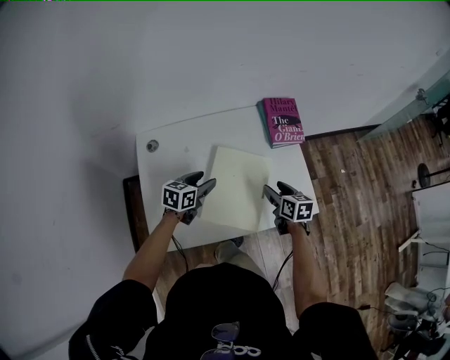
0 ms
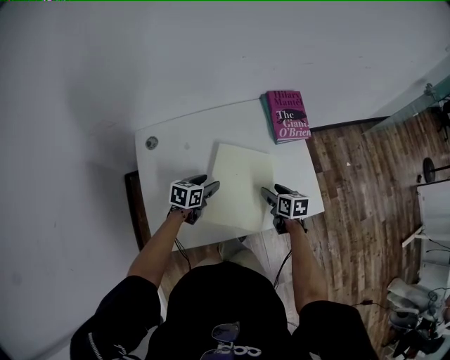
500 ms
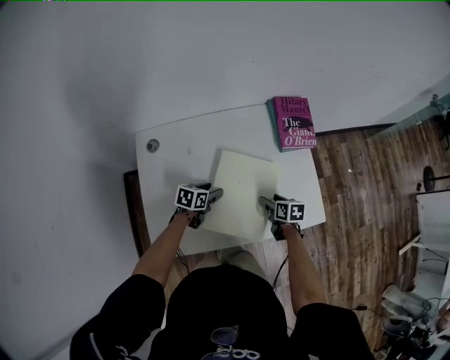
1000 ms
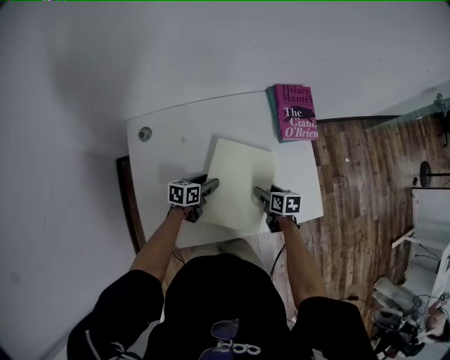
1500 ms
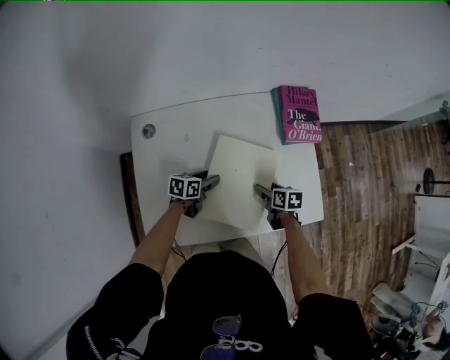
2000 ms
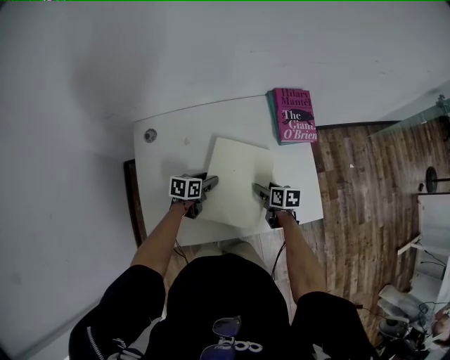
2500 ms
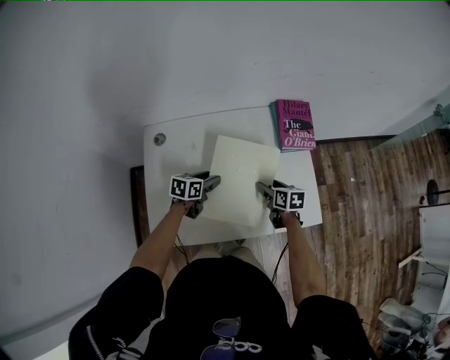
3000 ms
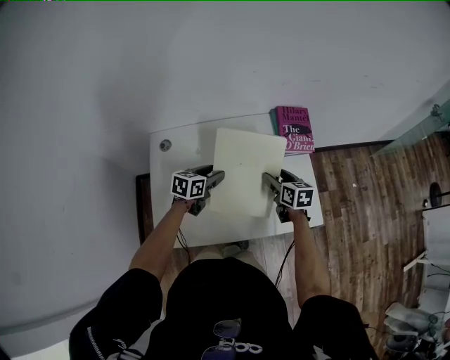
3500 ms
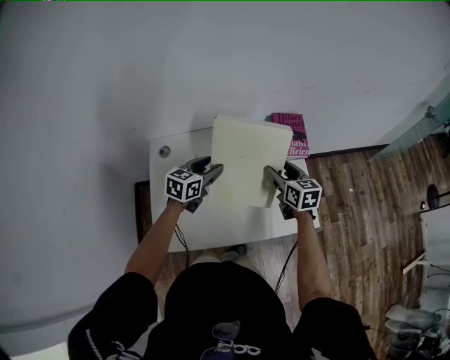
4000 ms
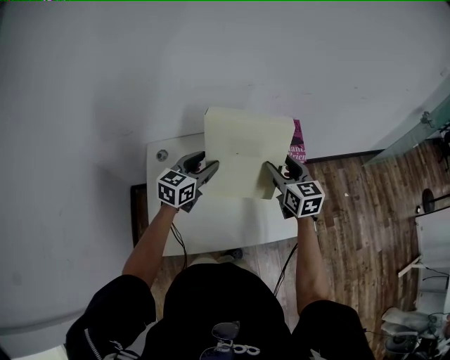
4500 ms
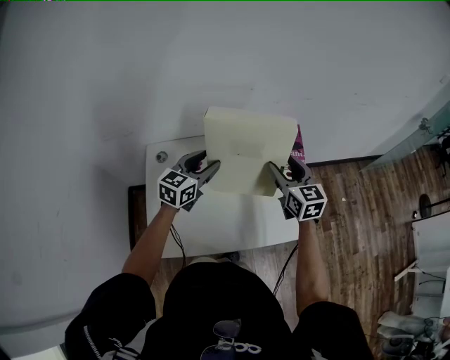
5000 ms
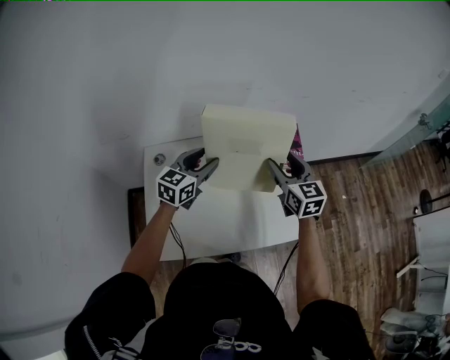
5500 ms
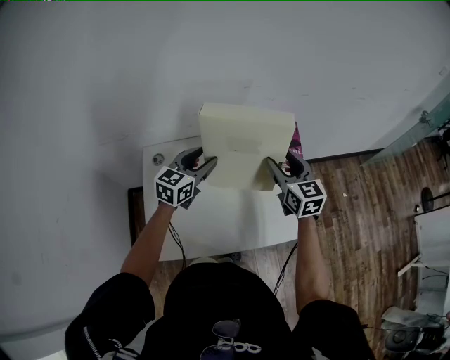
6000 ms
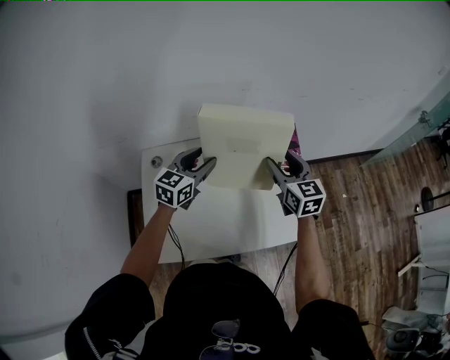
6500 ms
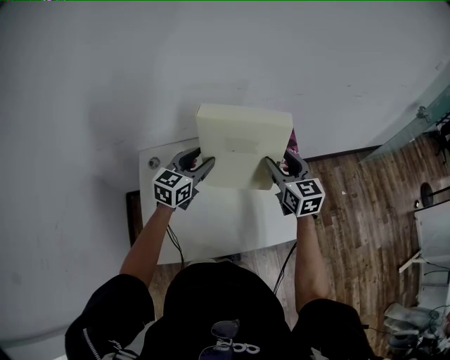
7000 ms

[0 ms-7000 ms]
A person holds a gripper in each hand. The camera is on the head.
0 ms to 2000 ms: Both grippers move downward, some 15 cm. The right gripper turns by about 20 degrees. Meanwhile the left gripper swivels approximately 20 degrees.
2000 ms to 3500 ms: The grippers both shift upward by approximately 15 cm. The right gripper turns by some 30 degrees.
3500 ms to 5000 ms: The two grippers go about 20 cm upward. The right gripper rotates approximately 30 degrees. The left gripper changes its angle by about 30 degrees.
5000 ms to 7000 ms: There are only small adjustments of the grippers.

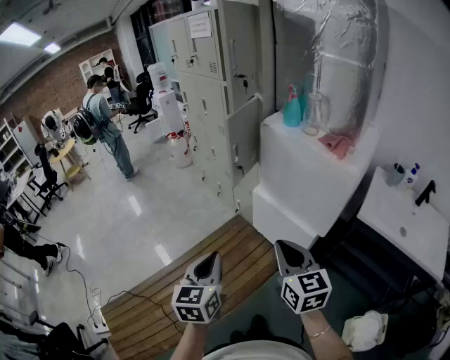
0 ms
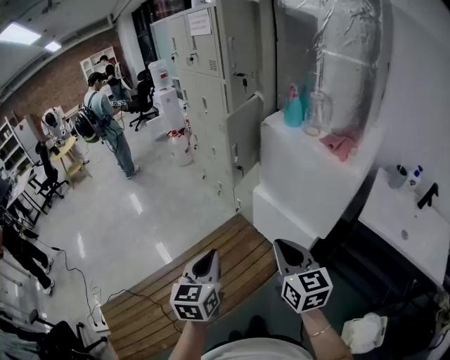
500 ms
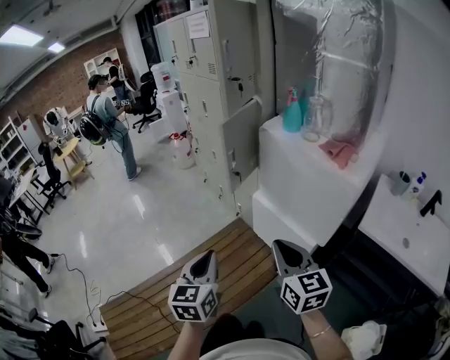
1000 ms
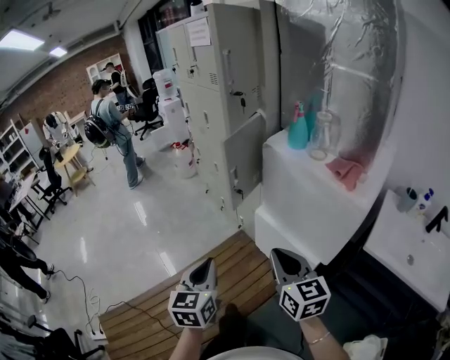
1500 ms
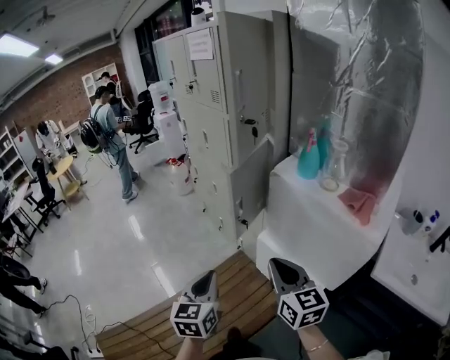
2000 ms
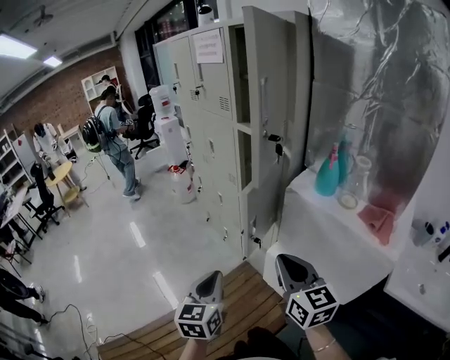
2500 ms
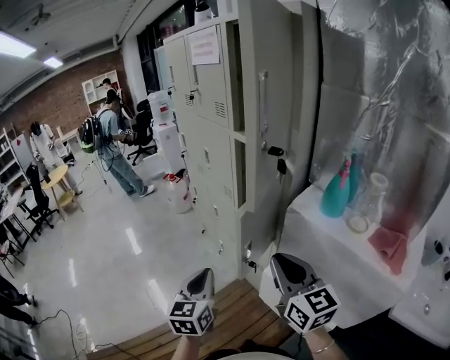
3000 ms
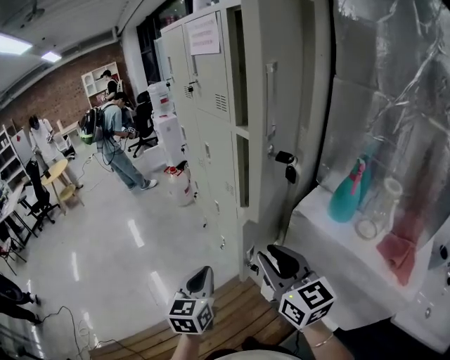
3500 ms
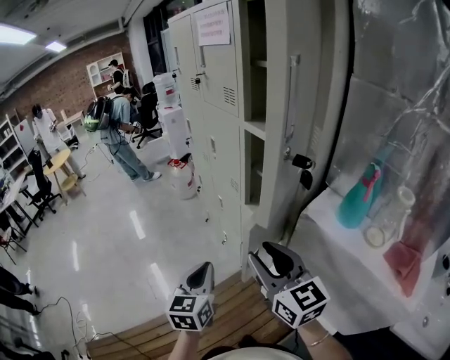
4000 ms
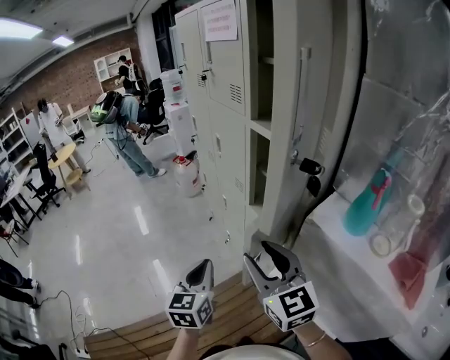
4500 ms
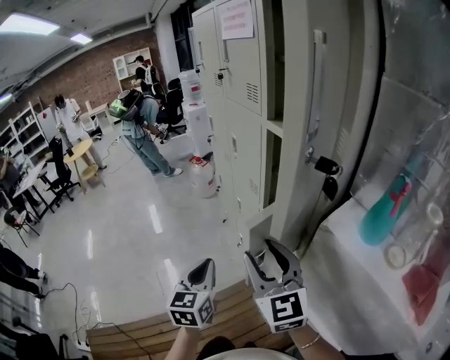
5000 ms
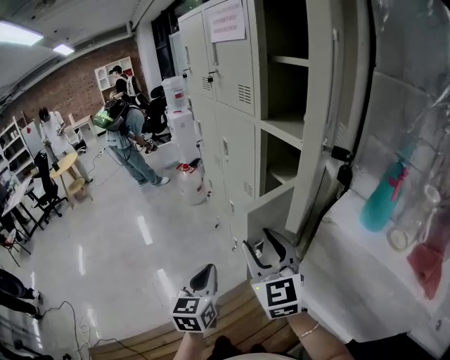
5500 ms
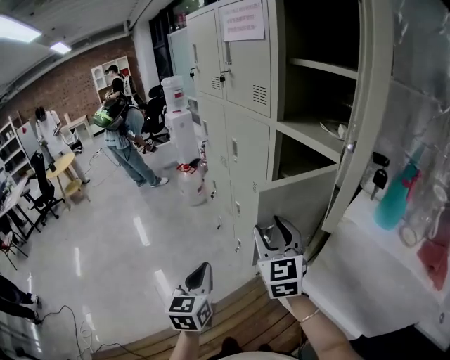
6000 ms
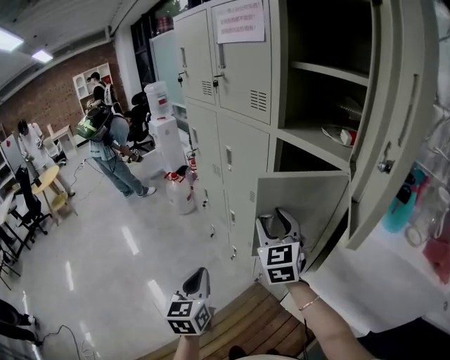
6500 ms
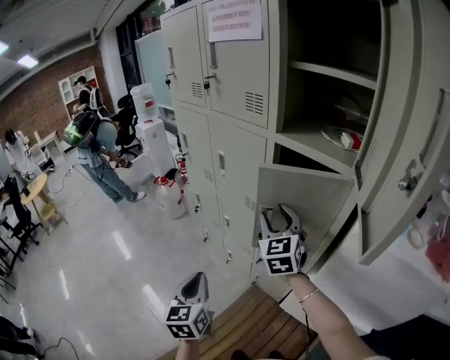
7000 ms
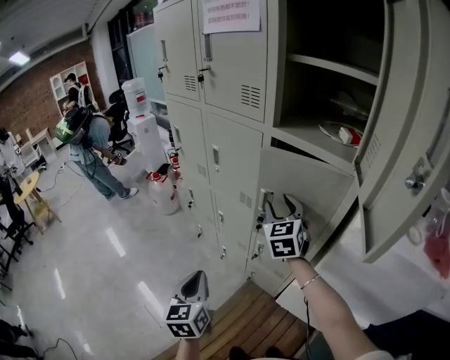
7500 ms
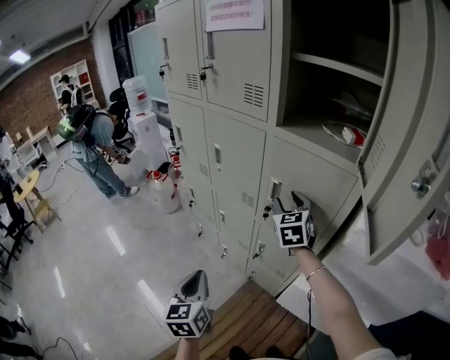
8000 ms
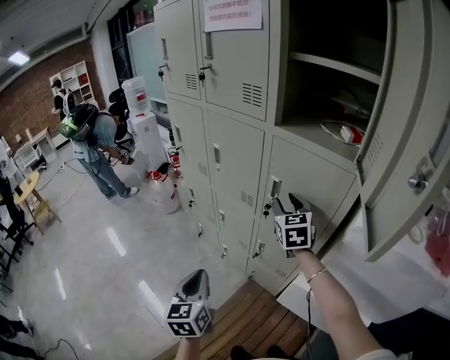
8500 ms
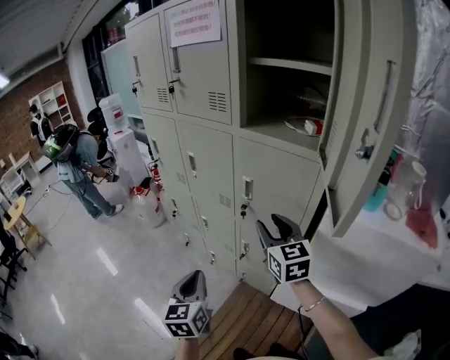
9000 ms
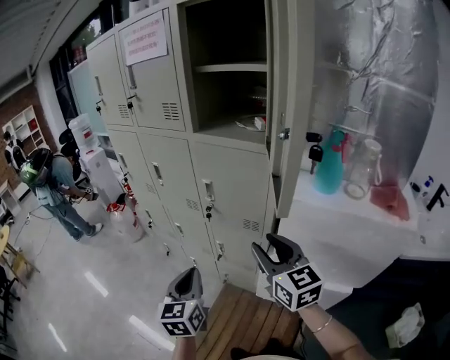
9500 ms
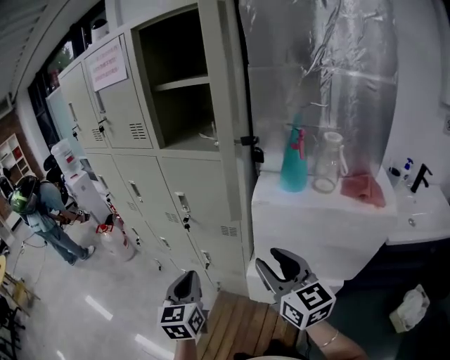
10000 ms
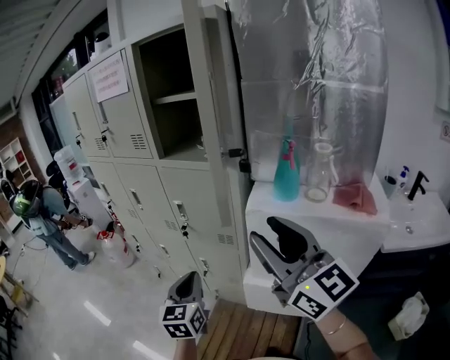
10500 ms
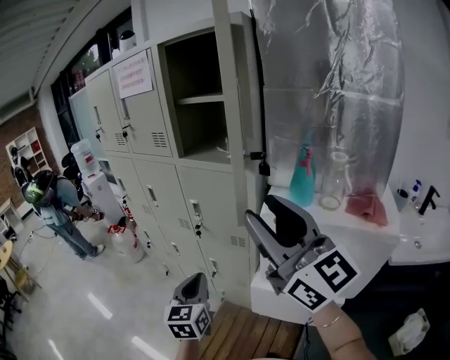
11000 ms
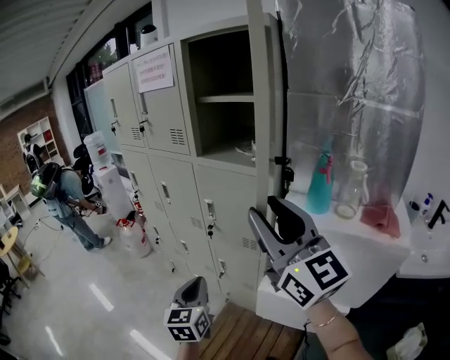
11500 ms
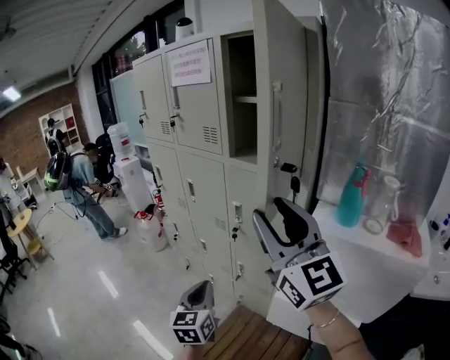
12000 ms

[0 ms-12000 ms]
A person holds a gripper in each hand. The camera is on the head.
0 ms to 2000 ms: Both grippers travel together forward, some 25 cm.
2000 ms to 4000 ms: The two grippers go approximately 30 cm forward. The right gripper opens its fingers.
4000 ms to 6000 ms: The right gripper shifts some 15 cm forward and to the left, and changes its angle by approximately 30 degrees; the left gripper shifts approximately 15 cm to the left and forward.
6000 ms to 8000 ms: The left gripper moves forward and to the left, roughly 15 cm. The right gripper shifts some 20 cm forward, and turns by some 30 degrees.
8000 ms to 10000 ms: The right gripper is displaced backward and to the right by some 40 cm, and rotates about 30 degrees, while the left gripper shifts some 20 cm to the right, and changes its angle by about 20 degrees.
10000 ms to 12000 ms: The left gripper shifts roughly 10 cm to the left; the right gripper goes some 25 cm upward and to the left, and turns by approximately 30 degrees.

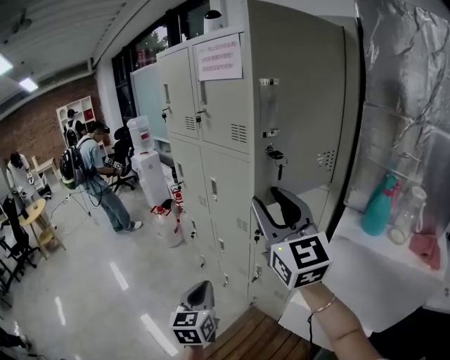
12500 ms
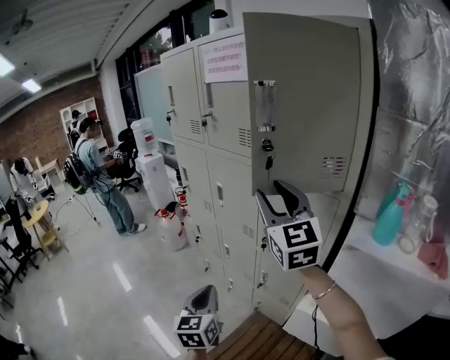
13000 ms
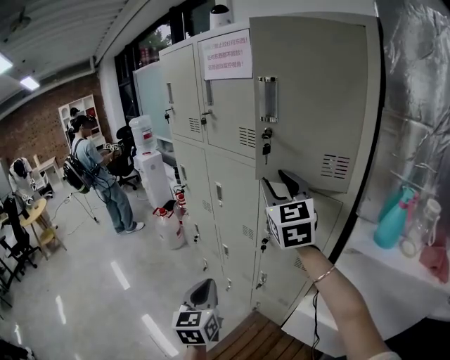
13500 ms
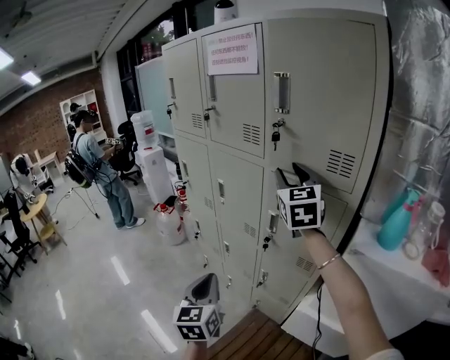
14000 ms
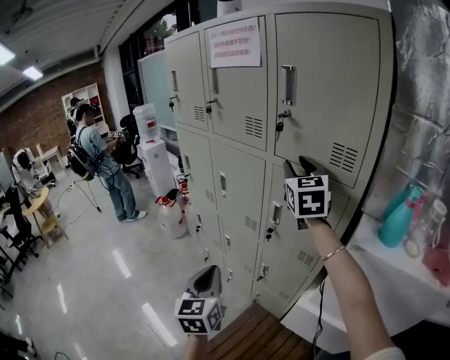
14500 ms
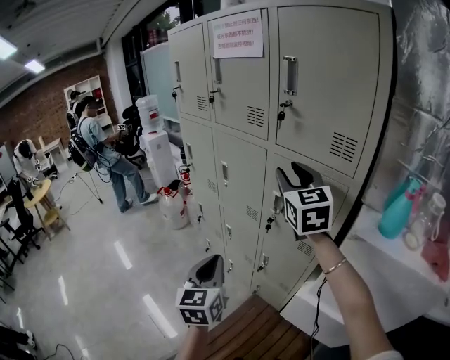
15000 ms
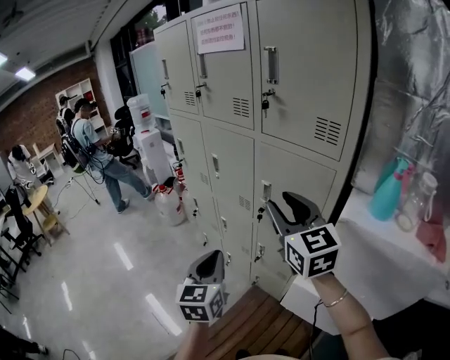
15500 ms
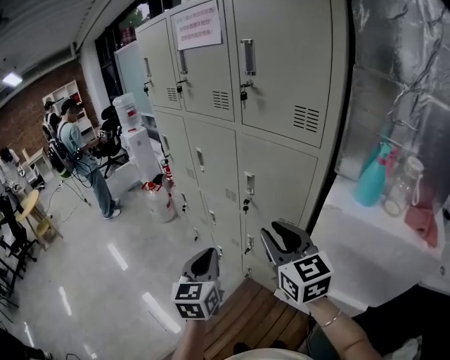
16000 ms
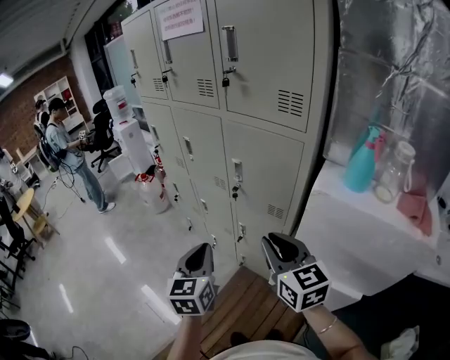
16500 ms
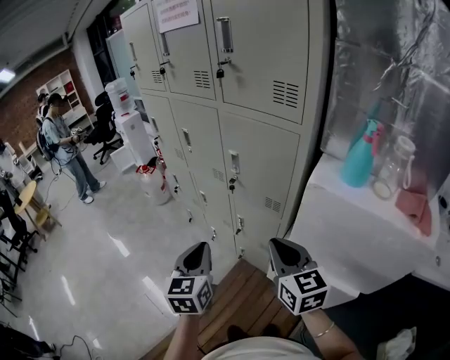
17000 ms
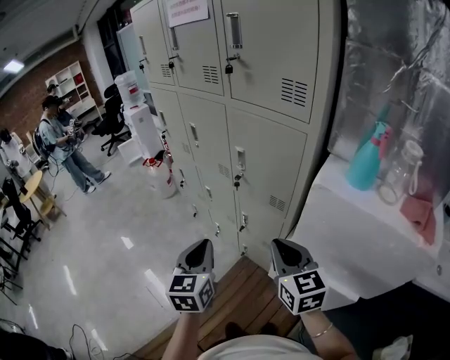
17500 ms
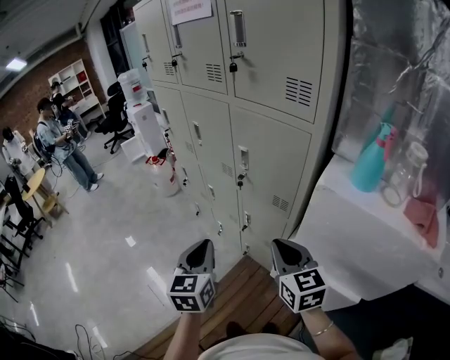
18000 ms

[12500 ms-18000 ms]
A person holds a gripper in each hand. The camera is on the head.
12500 ms to 14500 ms: The right gripper goes about 20 cm forward, and swivels about 30 degrees; the left gripper travels forward by roughly 5 cm.
14500 ms to 16000 ms: The left gripper moves to the right and backward, approximately 10 cm, while the right gripper moves backward and downward, some 30 cm, and rotates some 20 degrees.
16000 ms to 18000 ms: The left gripper moves some 5 cm. The right gripper travels downward and to the right by about 10 cm, and closes its fingers.

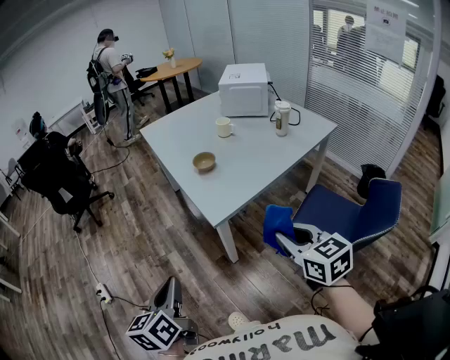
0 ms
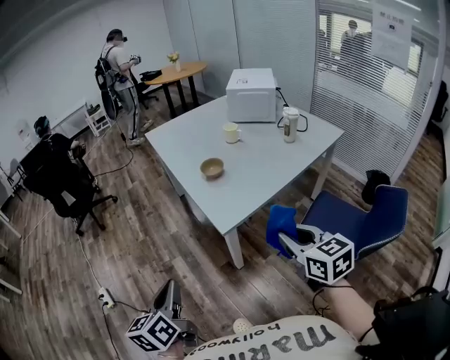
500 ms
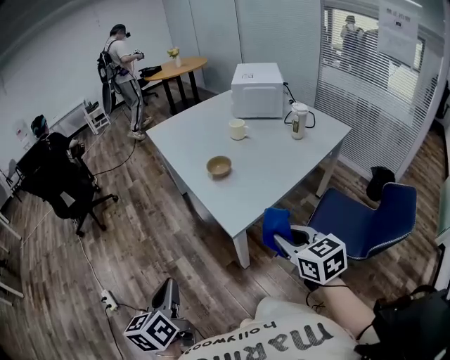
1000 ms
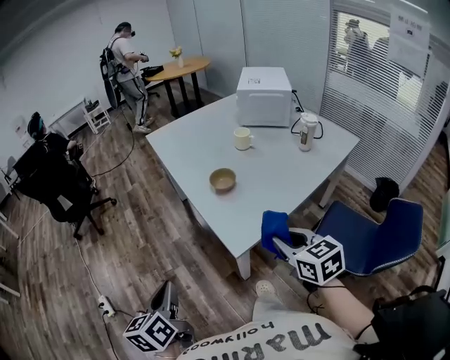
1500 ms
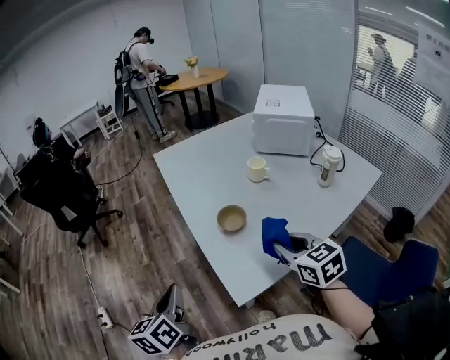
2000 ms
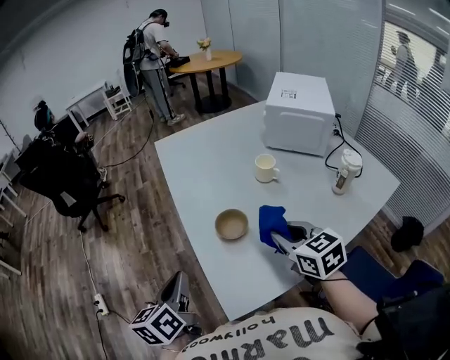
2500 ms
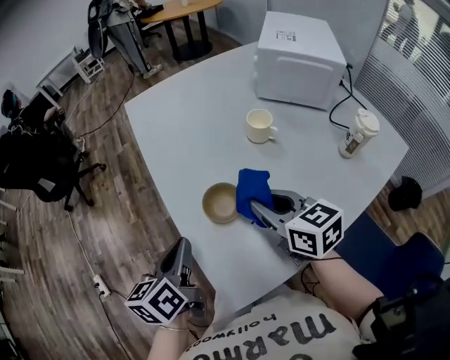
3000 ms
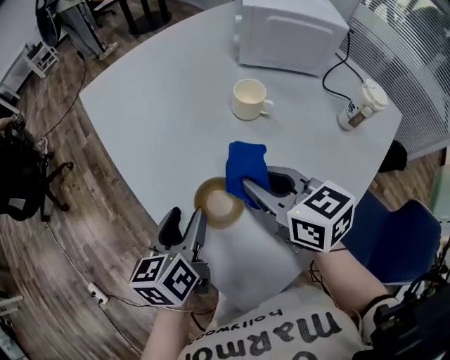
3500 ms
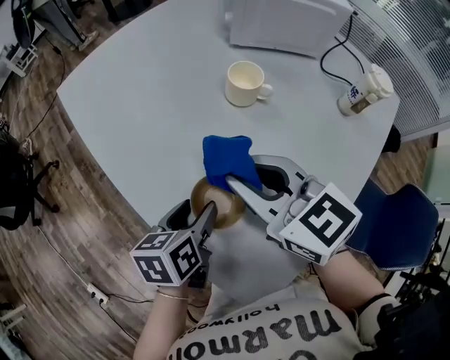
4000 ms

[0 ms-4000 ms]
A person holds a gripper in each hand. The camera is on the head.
0 ms to 2000 ms: The two grippers go about 30 cm forward.
2000 ms to 4000 ms: The left gripper is displaced forward, downward and to the right by roughly 35 cm, swivels about 40 degrees, and opens up, while the right gripper heads forward, covering approximately 25 cm.
